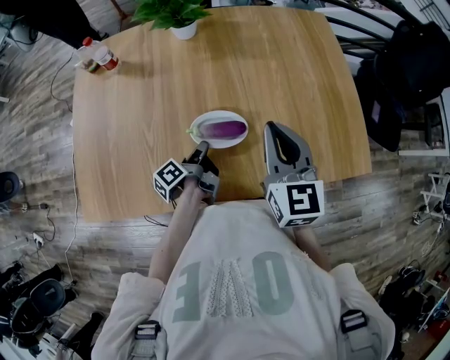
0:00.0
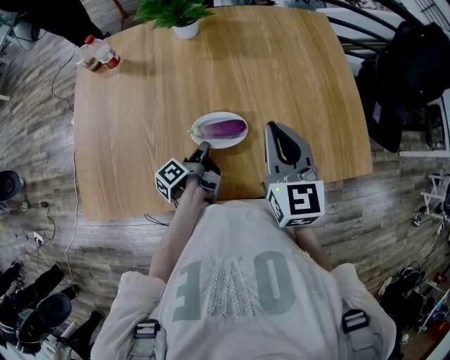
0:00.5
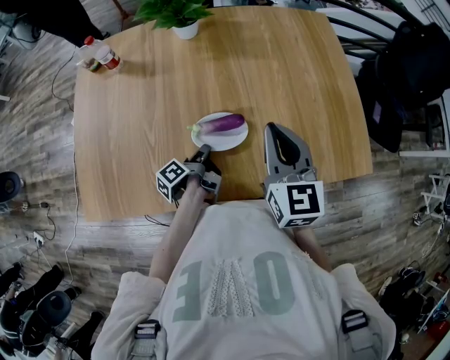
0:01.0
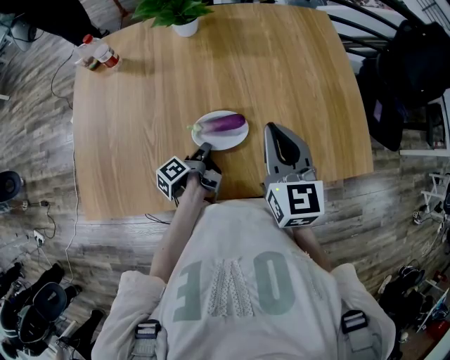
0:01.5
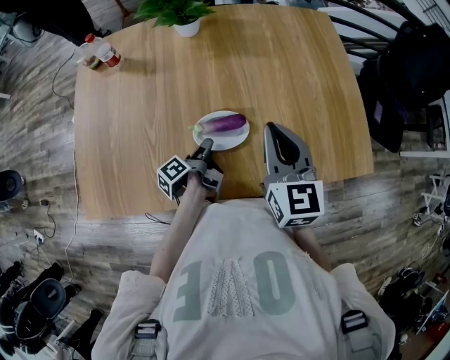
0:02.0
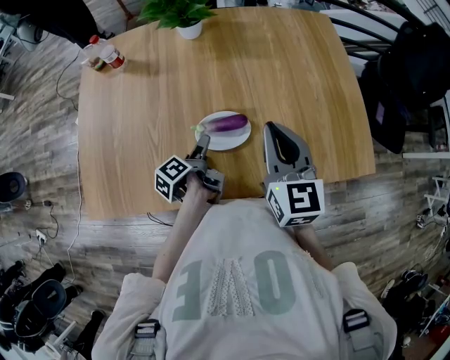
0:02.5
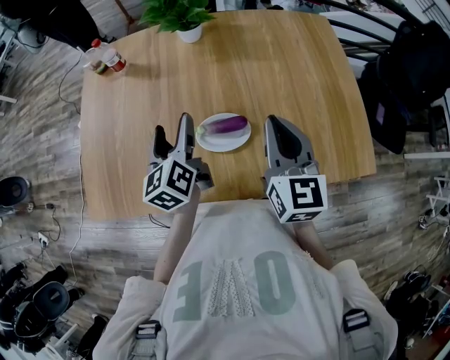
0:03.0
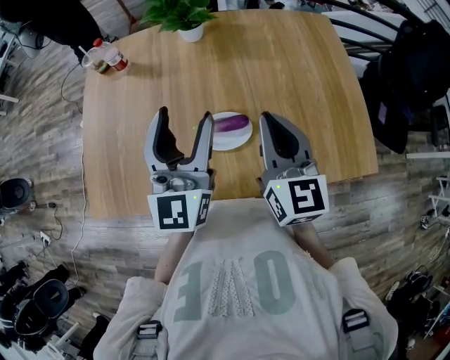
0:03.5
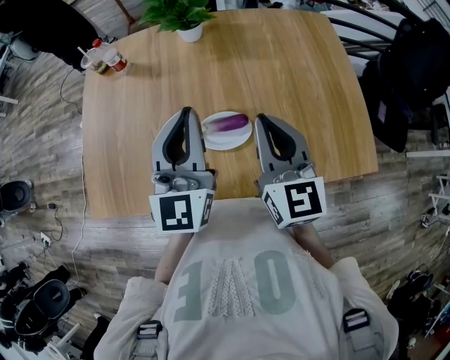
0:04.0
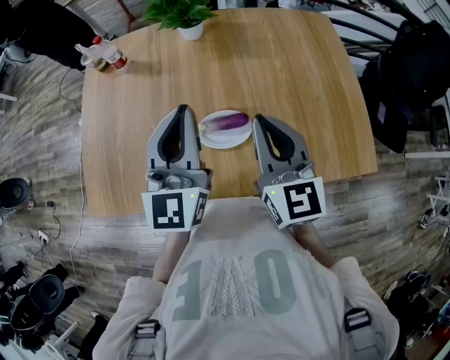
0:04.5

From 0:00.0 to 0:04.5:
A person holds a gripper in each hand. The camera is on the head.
From 0:02.0 to 0:04.5: The right gripper shifts by roughly 5 cm.

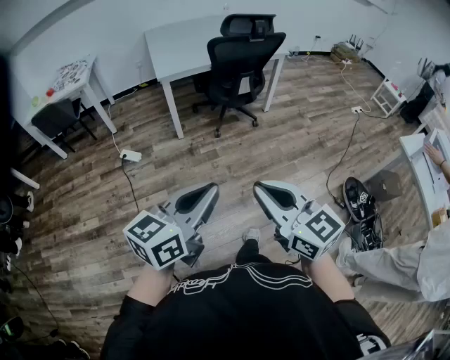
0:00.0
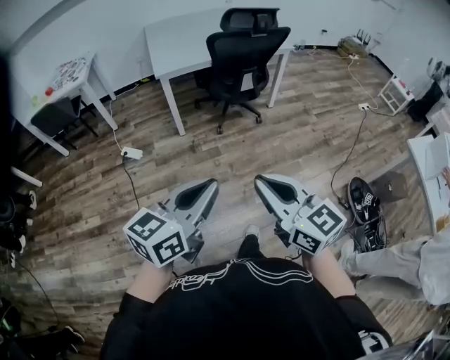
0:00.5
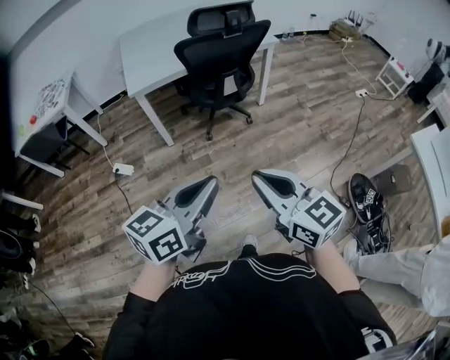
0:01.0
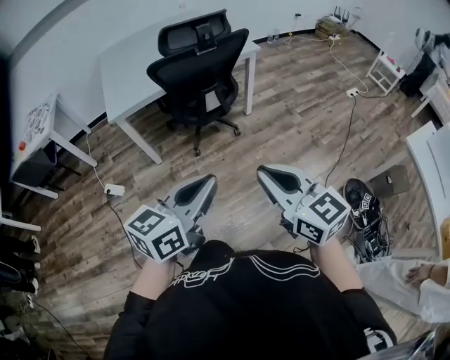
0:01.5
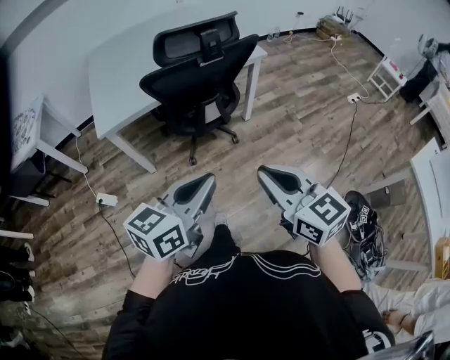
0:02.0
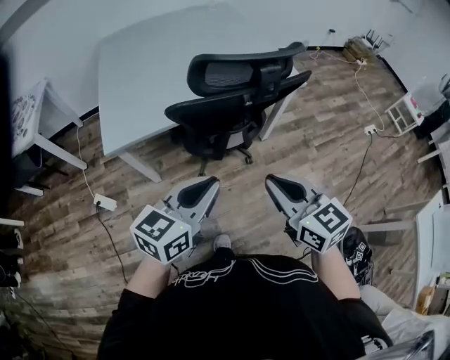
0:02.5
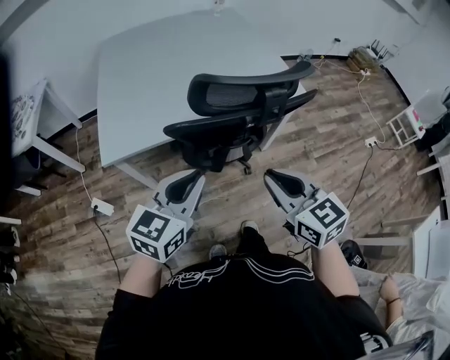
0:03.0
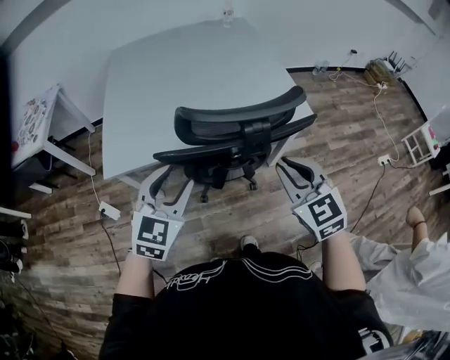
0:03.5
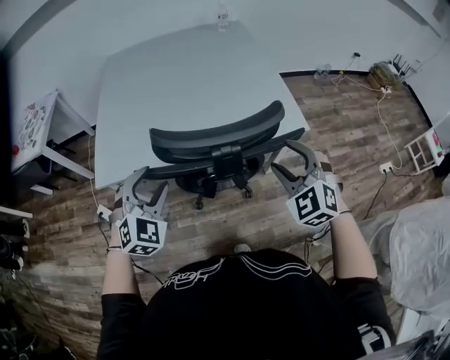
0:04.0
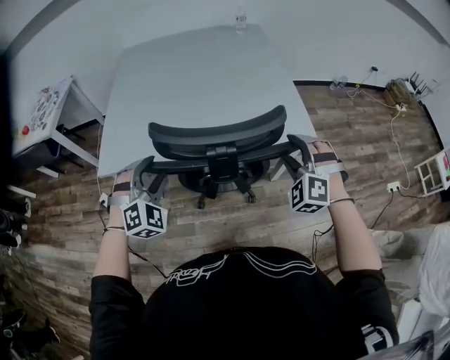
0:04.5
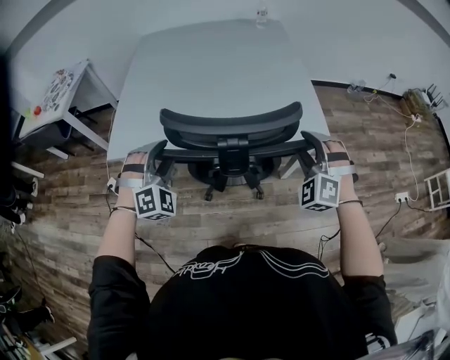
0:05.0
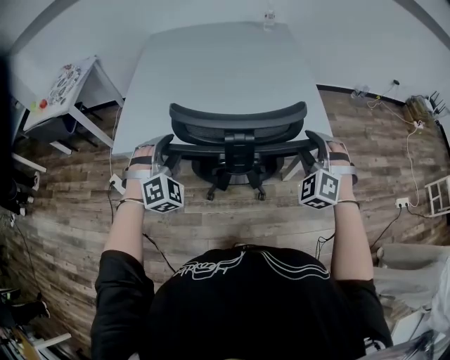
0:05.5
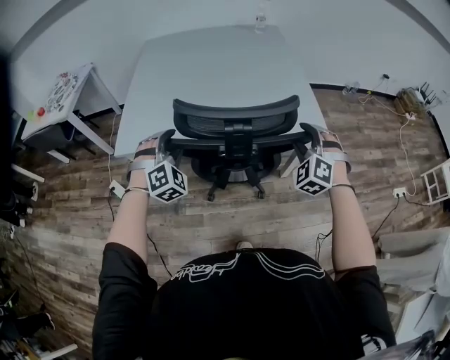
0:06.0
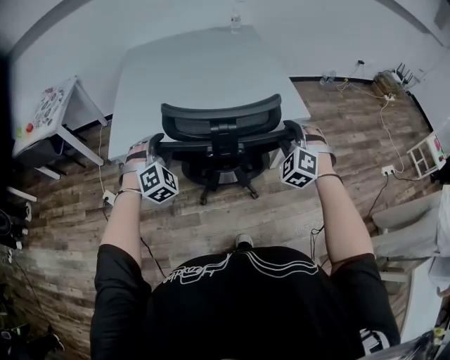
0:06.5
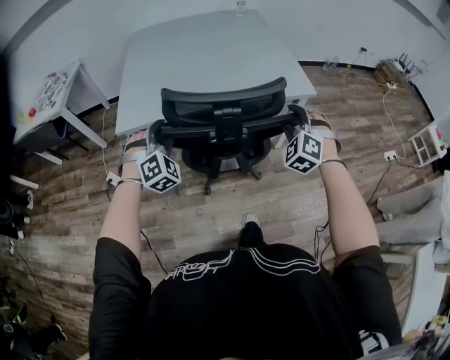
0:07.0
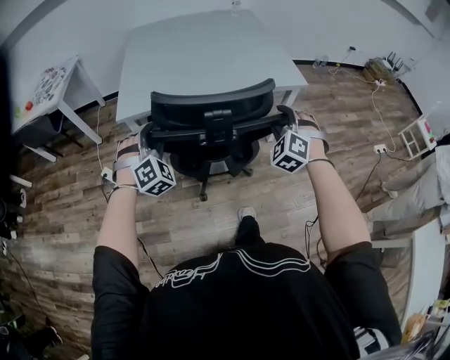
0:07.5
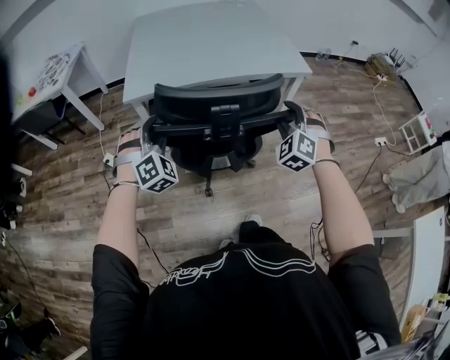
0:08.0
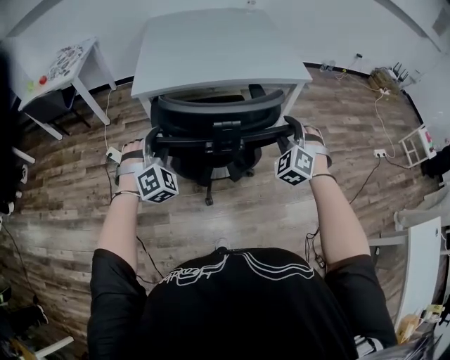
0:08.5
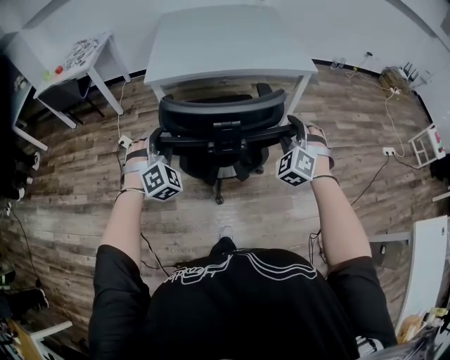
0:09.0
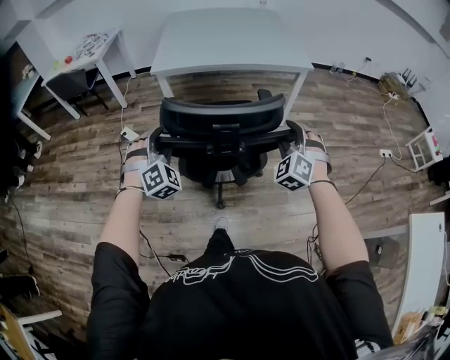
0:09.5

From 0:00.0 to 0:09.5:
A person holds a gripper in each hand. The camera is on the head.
From 0:00.0 to 0:02.0: Both grippers are carried forward, some 50 cm.
From 0:02.0 to 0:04.0: Both grippers travel together forward, some 40 cm. The right gripper twists some 50 degrees counterclockwise, seen from behind, and opens; the left gripper swivels approximately 70 degrees, and opens.
From 0:04.0 to 0:05.5: The left gripper changes place by roughly 5 cm, and turns by roughly 30 degrees. Meanwhile the right gripper shifts about 5 cm forward, and swivels roughly 20 degrees.
From 0:05.5 to 0:07.5: The grippers both shift backward and to the left by about 25 cm.
From 0:07.5 to 0:09.5: Both grippers travel together backward, roughly 30 cm.

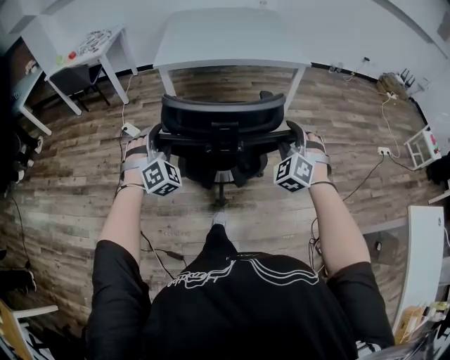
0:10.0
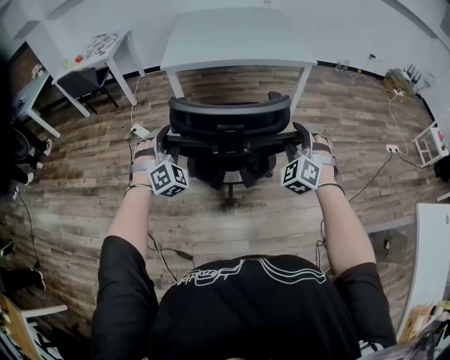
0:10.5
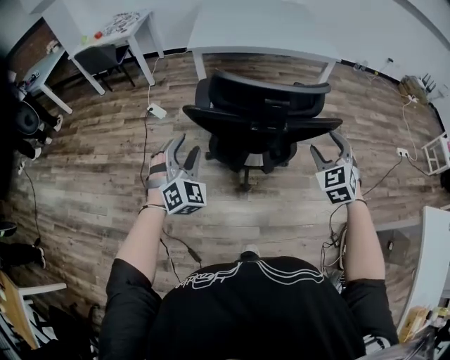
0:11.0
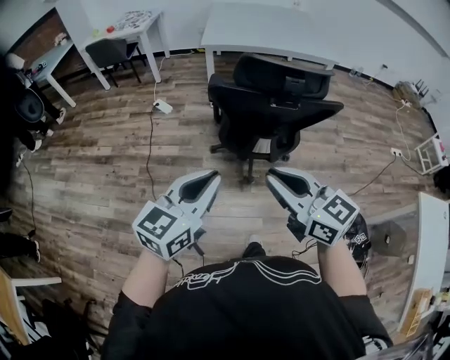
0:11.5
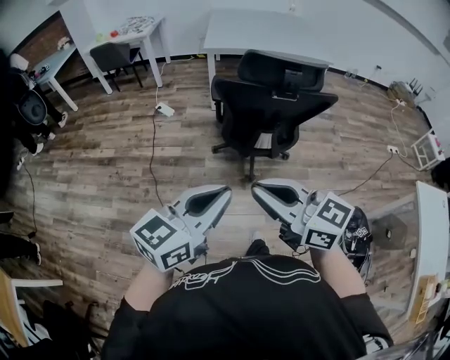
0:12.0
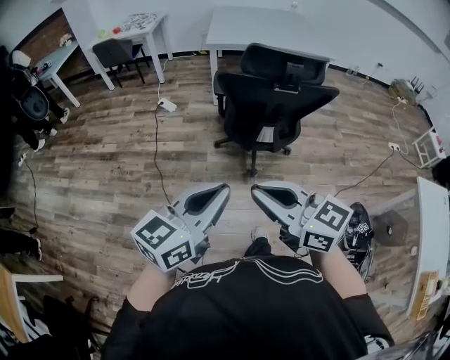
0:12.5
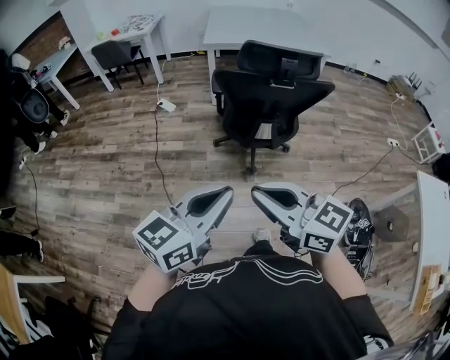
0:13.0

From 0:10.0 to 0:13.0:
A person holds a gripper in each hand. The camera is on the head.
From 0:10.0 to 0:11.5: The left gripper is displaced backward by approximately 35 cm, rolls counterclockwise, seen from behind, by some 70 degrees, and closes, while the right gripper heads backward and to the left, covering approximately 40 cm, changes its angle by roughly 80 degrees, and closes up.
From 0:11.5 to 0:13.0: The left gripper goes about 15 cm backward. The right gripper moves backward and to the left, approximately 15 cm.

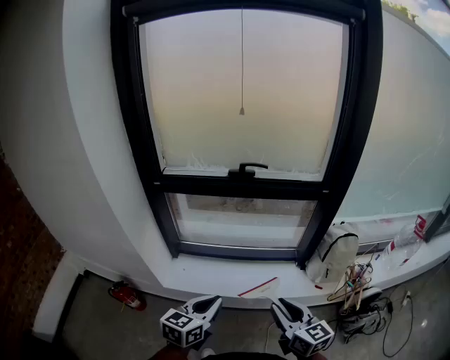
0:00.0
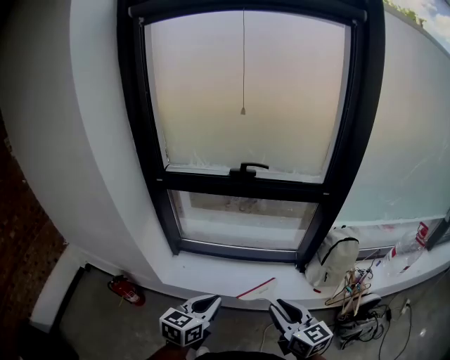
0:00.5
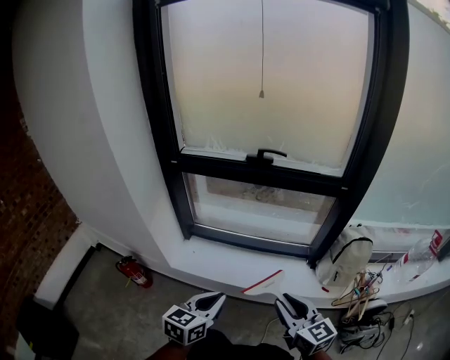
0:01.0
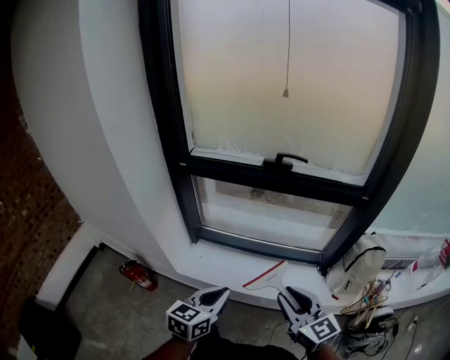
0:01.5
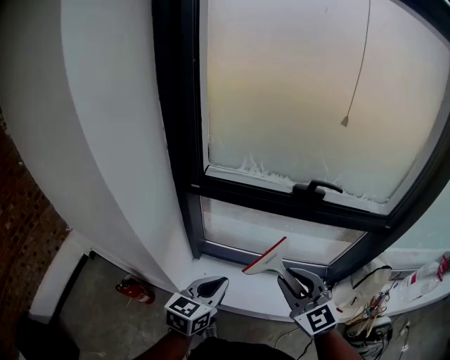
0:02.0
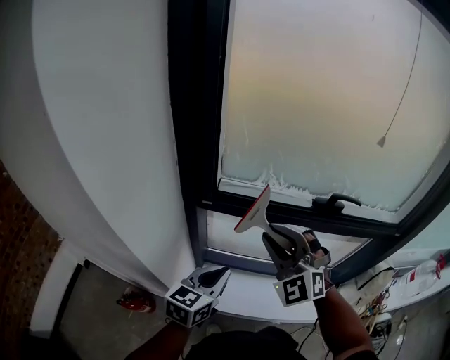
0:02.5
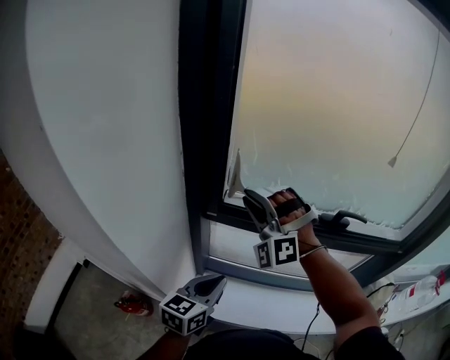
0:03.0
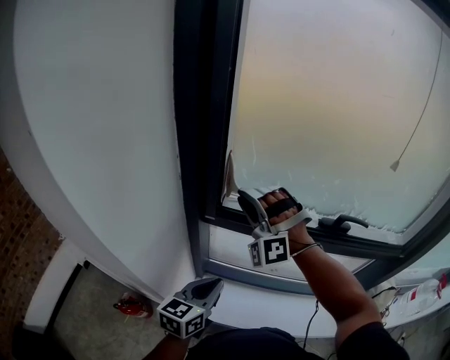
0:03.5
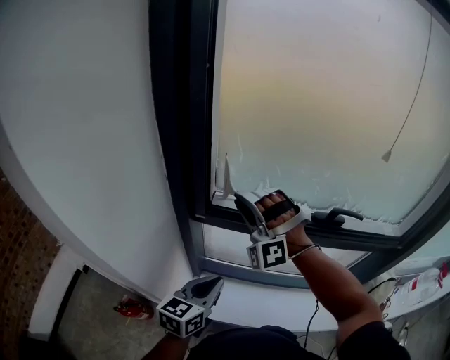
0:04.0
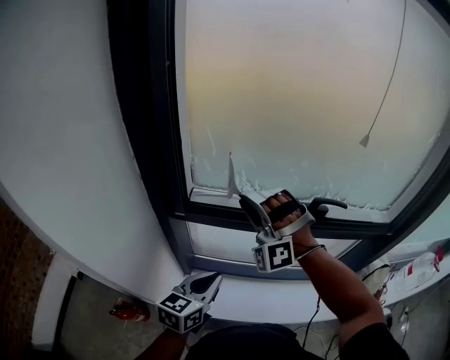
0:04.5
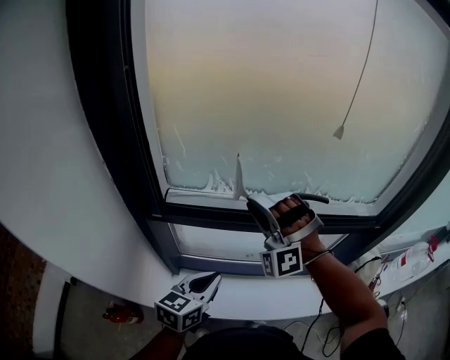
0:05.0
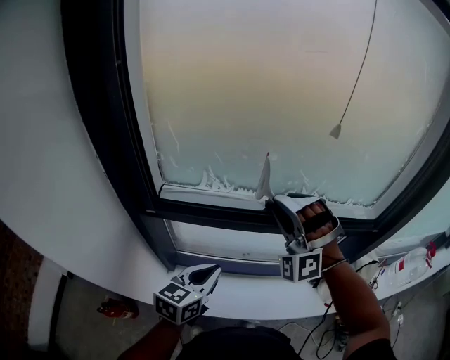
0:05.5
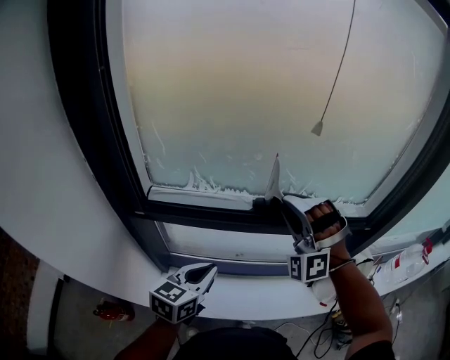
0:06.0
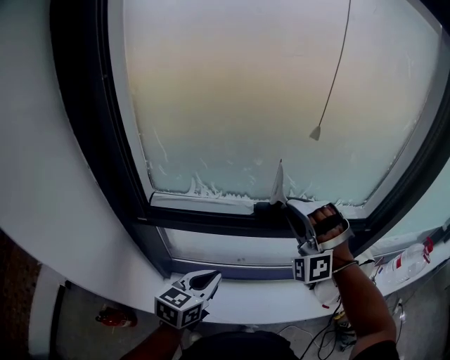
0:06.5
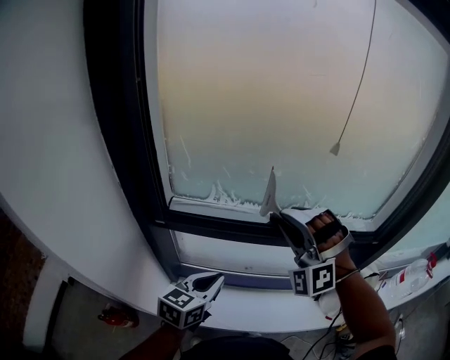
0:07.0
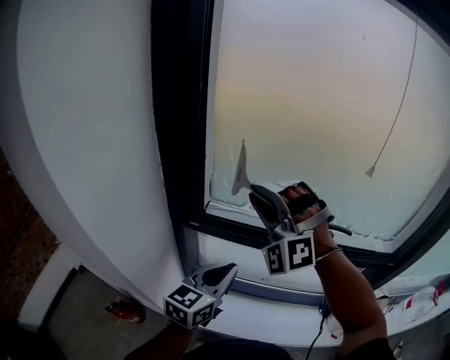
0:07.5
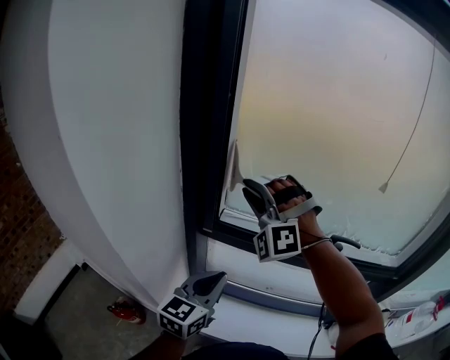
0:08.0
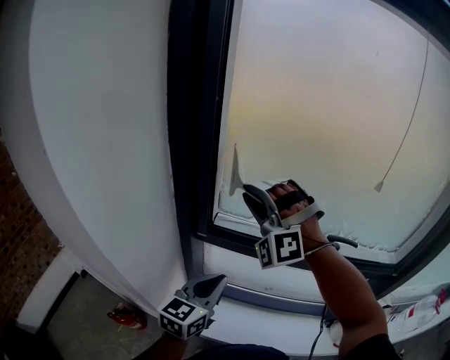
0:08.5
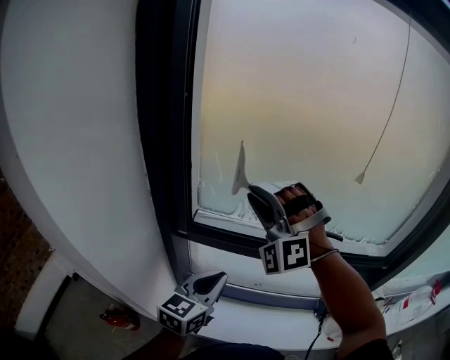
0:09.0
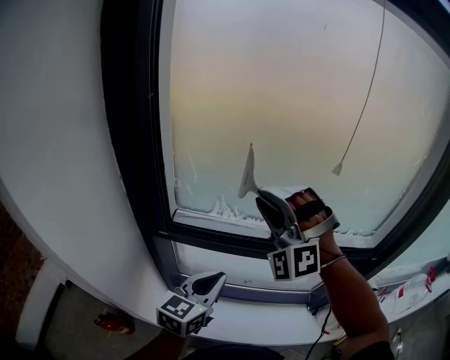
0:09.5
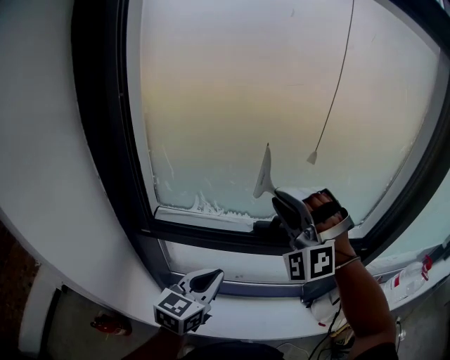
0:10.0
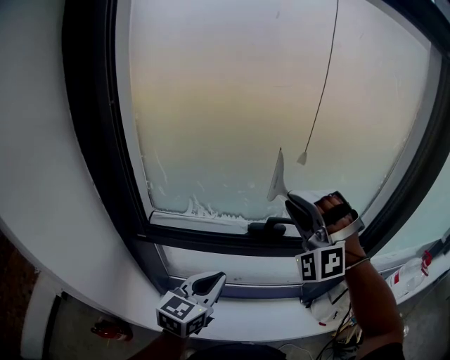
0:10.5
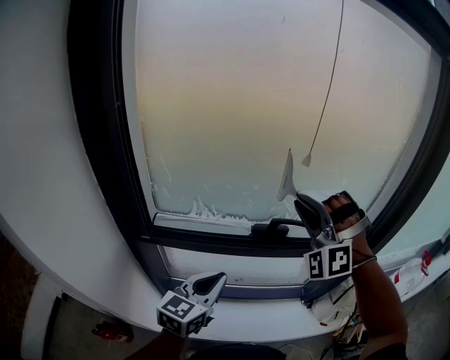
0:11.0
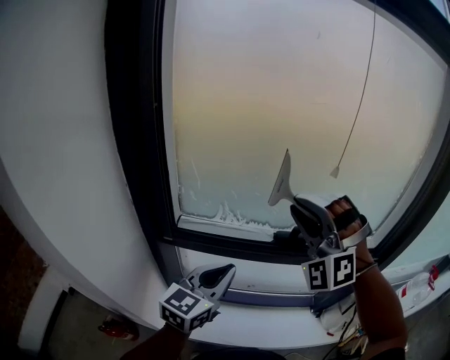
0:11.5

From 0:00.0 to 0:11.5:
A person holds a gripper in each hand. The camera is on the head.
From 0:00.0 to 0:02.0: Both grippers move forward and to the left, roughly 30 cm. The right gripper rotates about 40 degrees.
From 0:02.0 to 0:04.0: The right gripper shifts some 35 cm forward and to the left, and rotates around the line of its fingers by some 70 degrees, counterclockwise from behind, while the left gripper is displaced forward and to the left by about 15 cm.
From 0:04.0 to 0:06.0: The right gripper is displaced to the right by roughly 30 cm. Meanwhile the left gripper is displaced to the right and forward by some 15 cm.
From 0:06.0 to 0:07.5: The left gripper travels to the left and upward by some 10 cm. Meanwhile the right gripper heads to the left, covering some 25 cm, and changes its angle by roughly 20 degrees.
From 0:07.5 to 0:09.5: The right gripper moves to the right, approximately 10 cm, while the left gripper moves about 5 cm.
From 0:09.5 to 0:11.5: The left gripper moves upward, approximately 5 cm; the right gripper goes about 5 cm to the right.
